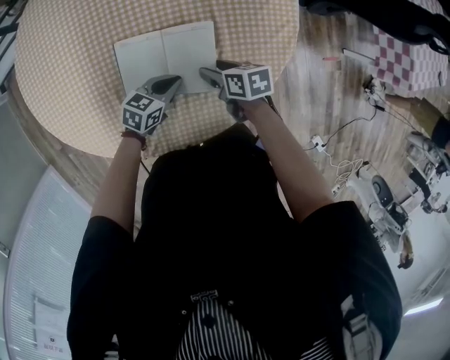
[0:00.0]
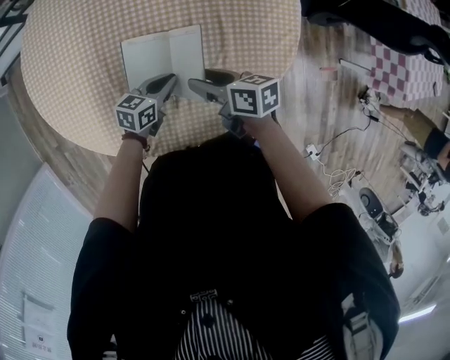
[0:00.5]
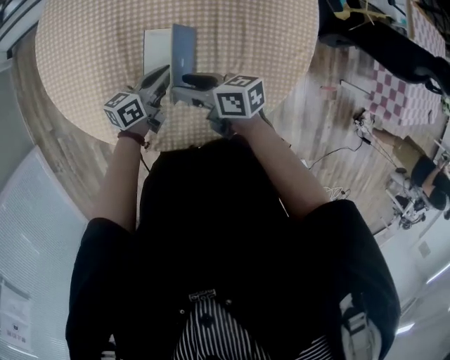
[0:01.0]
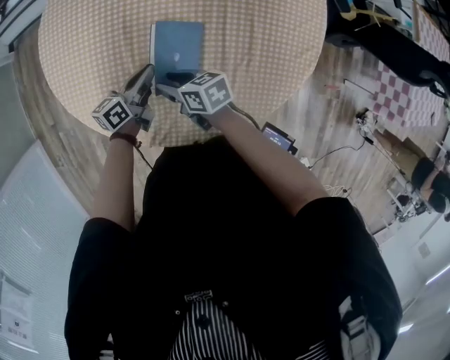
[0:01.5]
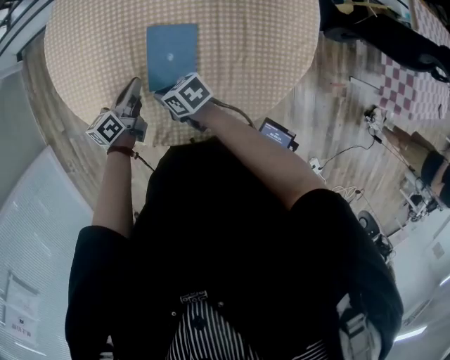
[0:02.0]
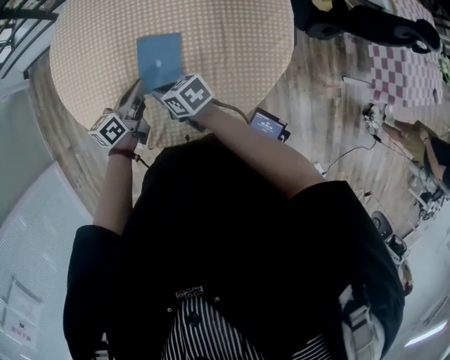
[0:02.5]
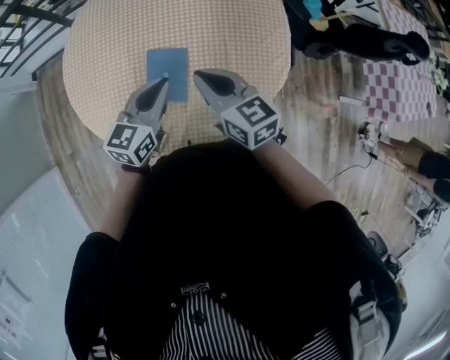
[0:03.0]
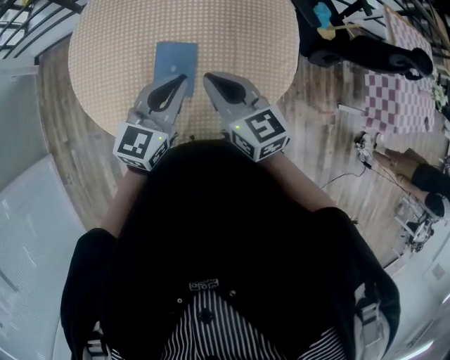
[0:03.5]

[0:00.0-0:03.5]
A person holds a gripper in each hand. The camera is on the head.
0:00.0 to 0:02.0: The right gripper moves about 25 cm, changes its angle by roughly 30 degrees, and closes its fingers; the left gripper moves approximately 20 cm, and rotates approximately 50 degrees.
0:02.0 to 0:03.5: Both grippers travel together upward and to the right, roughly 30 cm. The left gripper rolls clockwise, seen from behind, by roughly 50 degrees; the right gripper turns by about 50 degrees.

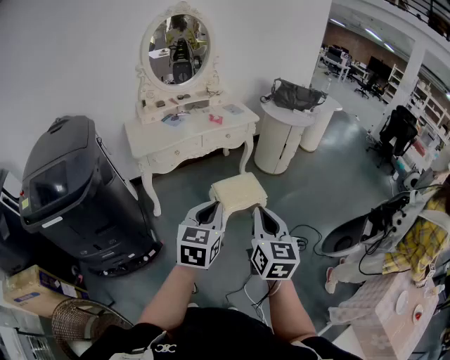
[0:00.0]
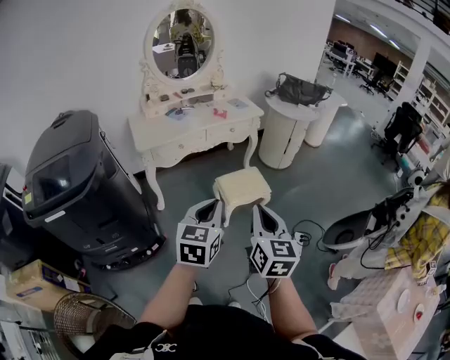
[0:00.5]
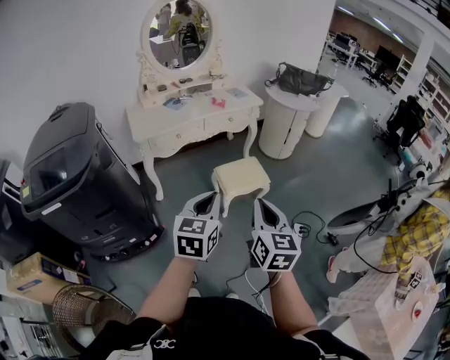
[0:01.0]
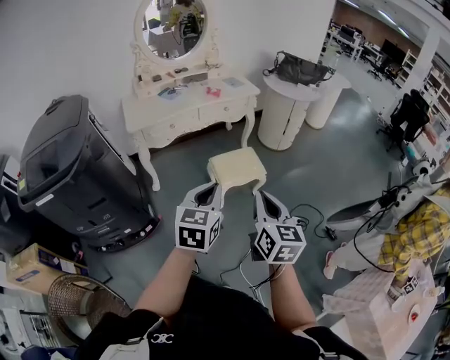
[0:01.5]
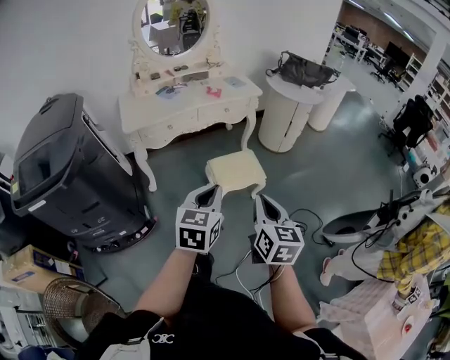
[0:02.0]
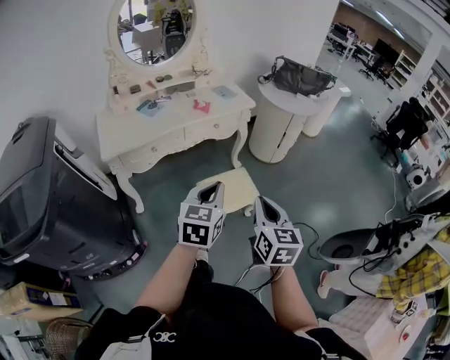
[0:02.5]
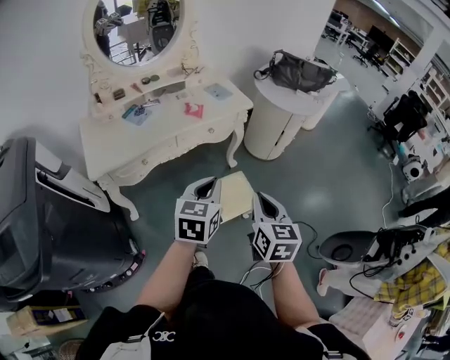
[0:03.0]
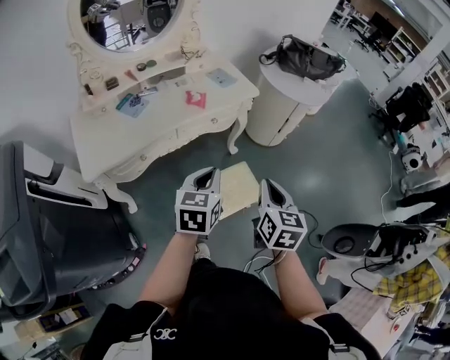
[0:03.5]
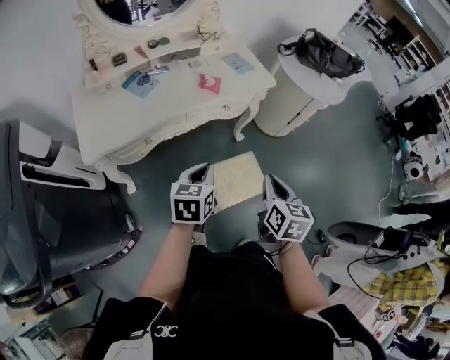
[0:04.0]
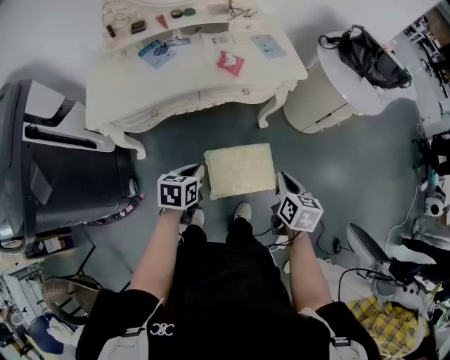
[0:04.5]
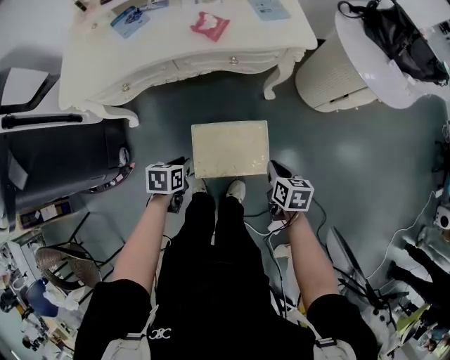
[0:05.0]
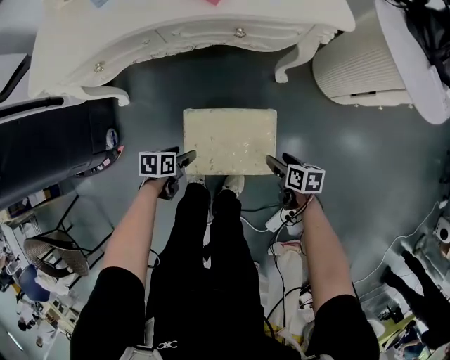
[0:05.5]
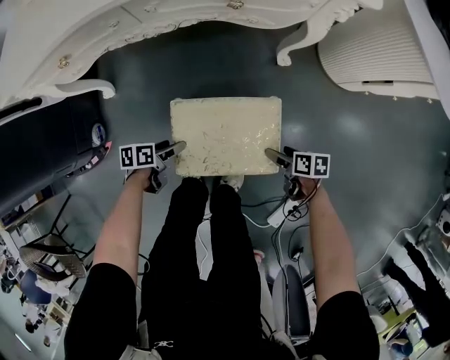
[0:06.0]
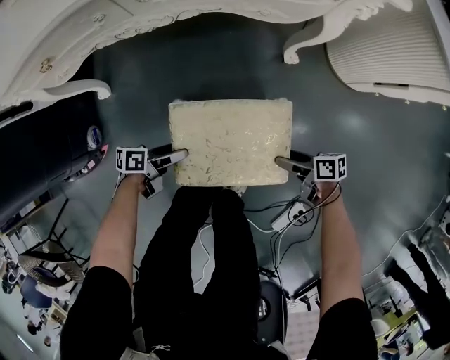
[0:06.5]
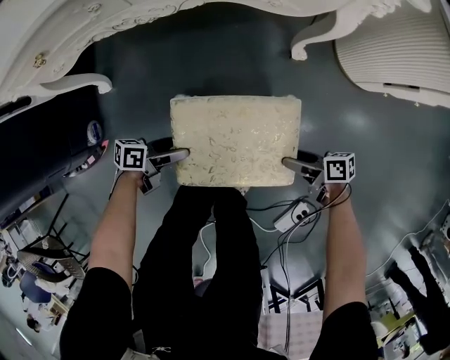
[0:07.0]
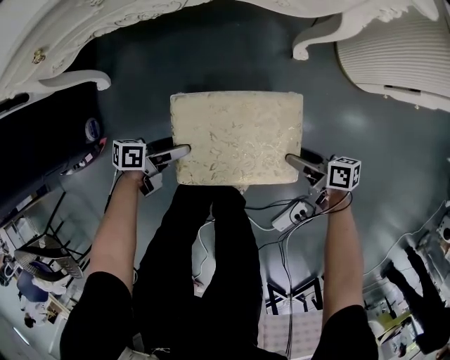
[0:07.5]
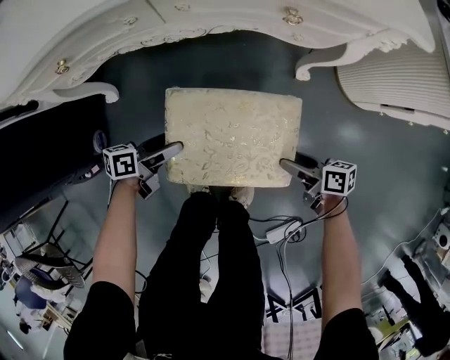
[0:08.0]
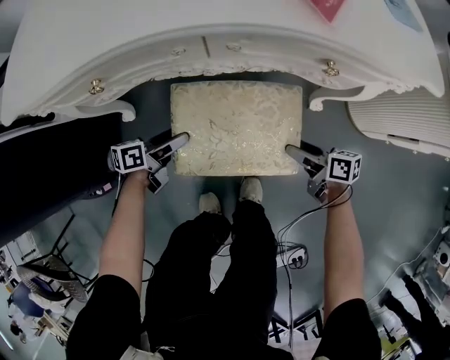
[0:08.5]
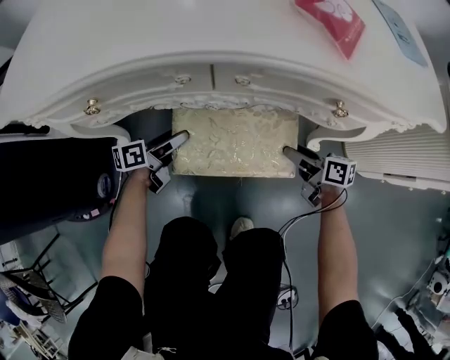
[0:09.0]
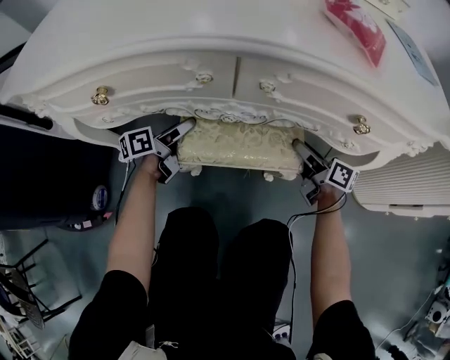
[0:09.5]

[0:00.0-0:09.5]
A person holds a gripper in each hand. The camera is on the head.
0:00.0 to 0:02.0: The right gripper goes some 10 cm to the right, downward and forward, while the left gripper shifts approximately 10 cm to the right, forward and downward.
0:02.0 to 0:04.0: The grippers both shift forward by approximately 40 cm.
0:04.0 to 0:05.5: The two grippers go roughly 40 cm downward. The left gripper rotates some 40 degrees, and opens its fingers. Meanwhile the right gripper rotates about 50 degrees, and opens.
0:05.5 to 0:07.5: Both grippers travel together downward, some 10 cm. The right gripper swivels approximately 30 degrees. Meanwhile the left gripper changes its angle by some 30 degrees.
0:07.5 to 0:09.5: The right gripper moves about 40 cm, and swivels about 30 degrees. Meanwhile the left gripper moves roughly 40 cm, and rotates roughly 40 degrees.

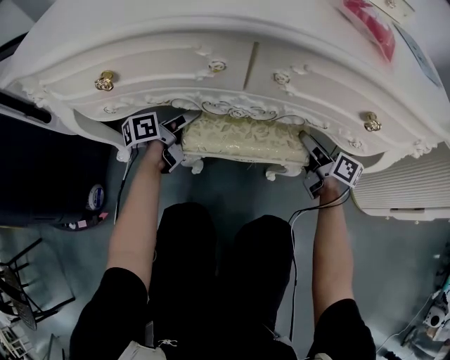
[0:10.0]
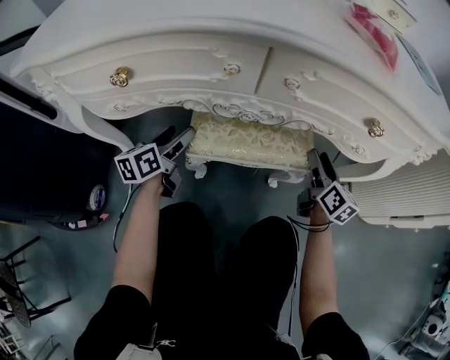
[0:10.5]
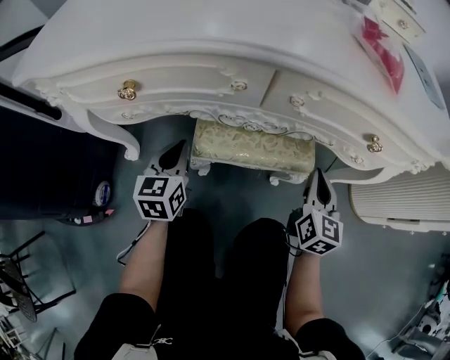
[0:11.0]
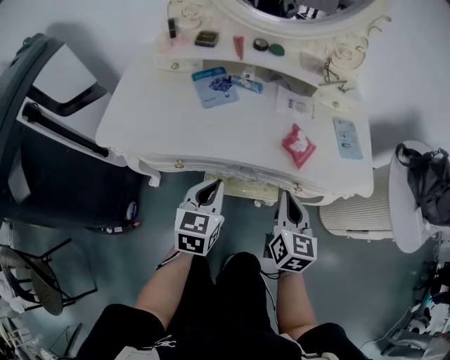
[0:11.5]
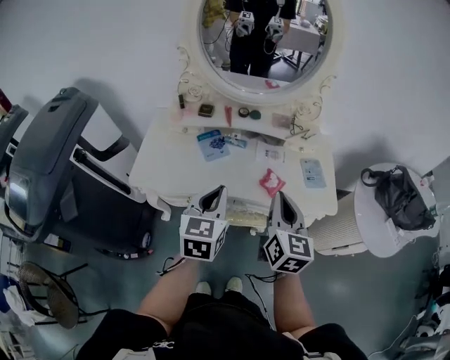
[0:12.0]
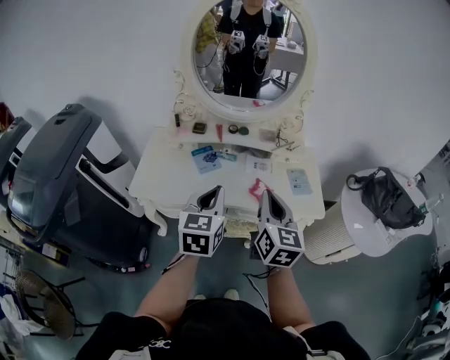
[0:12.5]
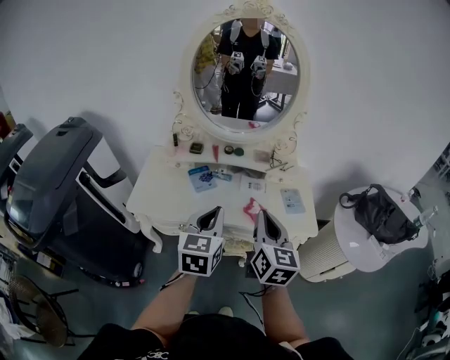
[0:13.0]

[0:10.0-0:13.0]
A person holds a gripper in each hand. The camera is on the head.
0:10.0 to 0:11.5: The left gripper travels upward and backward by some 40 cm, rolls clockwise, seen from behind, by roughly 40 degrees, and closes. Meanwhile the right gripper moves upward, some 40 cm, rotates about 50 degrees, and closes its fingers.
0:11.5 to 0:13.0: Both grippers travel together upward, roughly 30 cm.

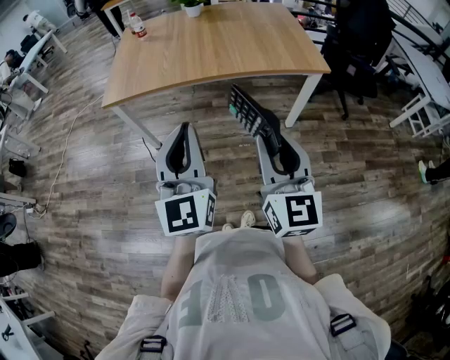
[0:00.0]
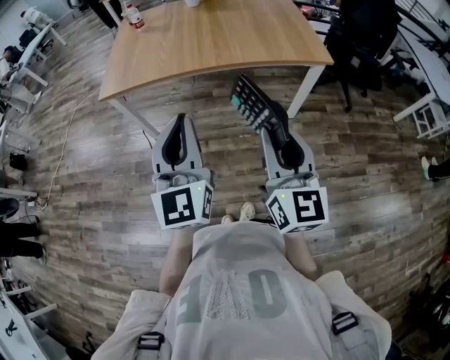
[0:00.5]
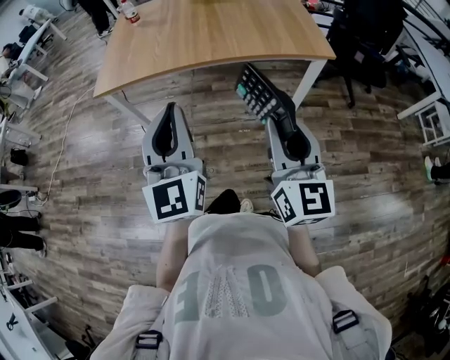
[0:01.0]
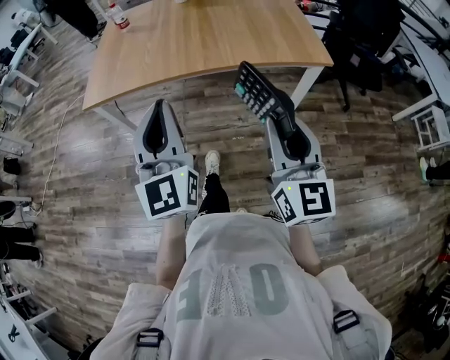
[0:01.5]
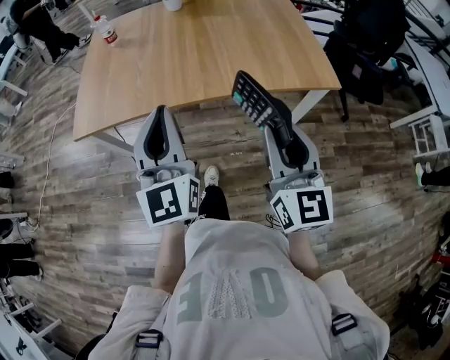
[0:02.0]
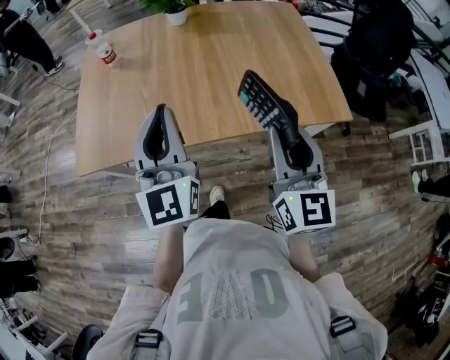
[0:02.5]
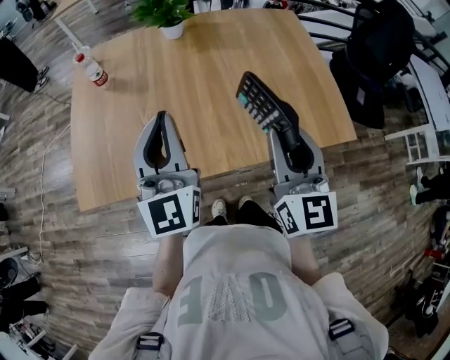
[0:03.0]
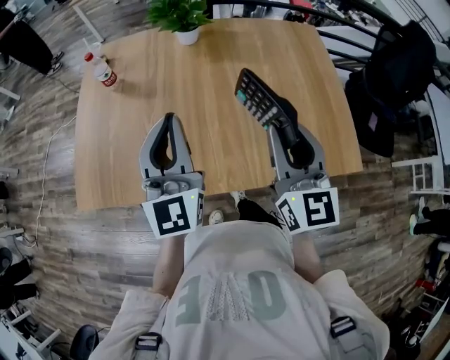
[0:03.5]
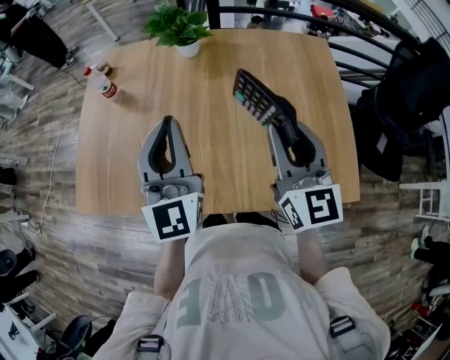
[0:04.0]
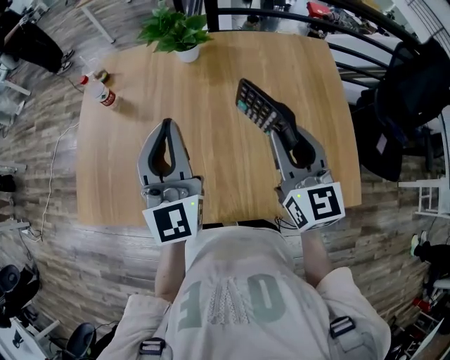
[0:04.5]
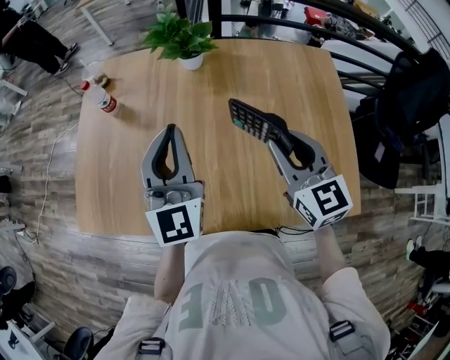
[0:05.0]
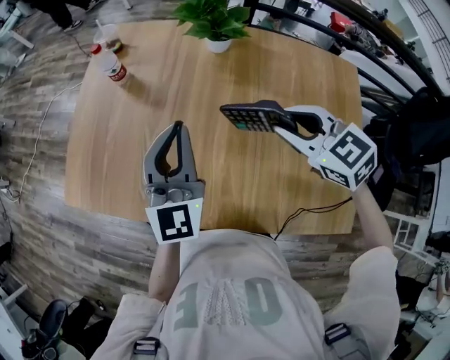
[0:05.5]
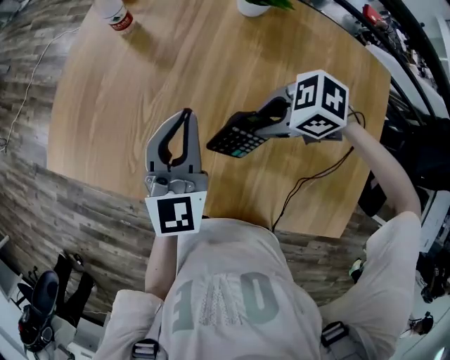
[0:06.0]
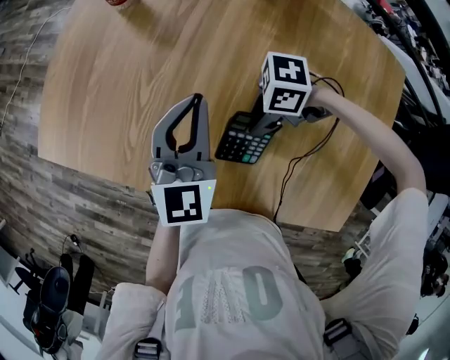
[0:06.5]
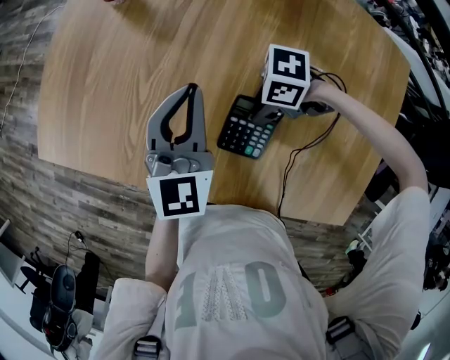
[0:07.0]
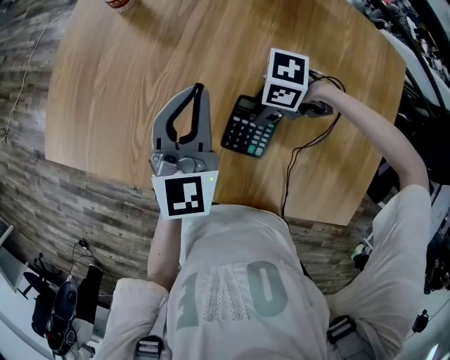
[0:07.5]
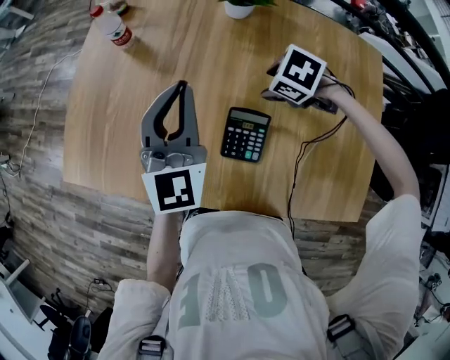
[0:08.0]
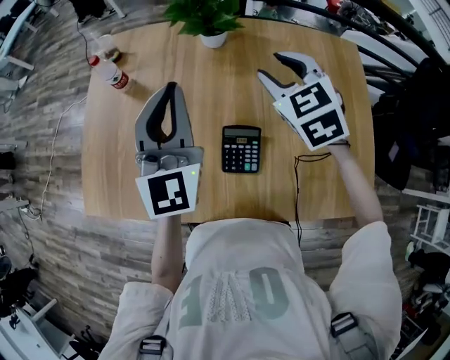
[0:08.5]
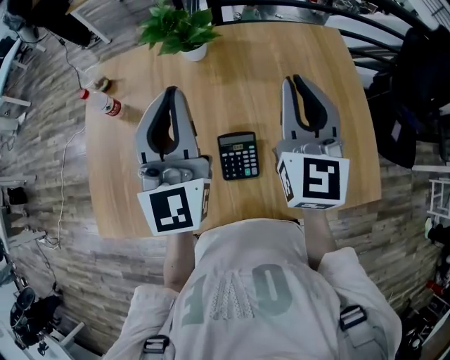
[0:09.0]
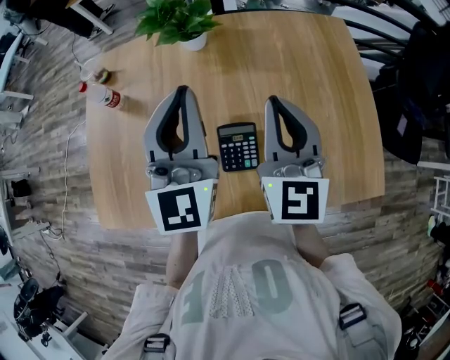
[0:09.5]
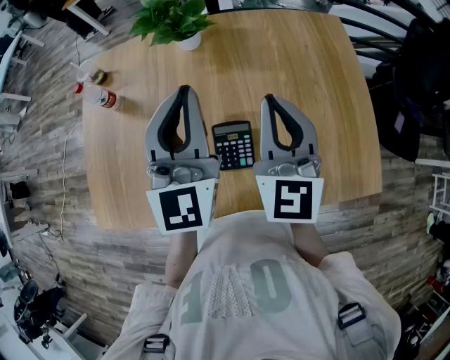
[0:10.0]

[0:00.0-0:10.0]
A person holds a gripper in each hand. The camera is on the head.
0:00.0 to 0:02.0: Both grippers move forward, roughly 25 cm.
0:02.0 to 0:04.0: Both grippers move forward, some 40 cm.
0:04.0 to 0:06.0: The grippers both shift downward by some 15 cm. The right gripper angles its fingers downward, by some 50 degrees; the left gripper turns by roughly 20 degrees.
0:06.0 to 0:08.0: The right gripper travels downward and back again, about 10 cm each way, rotates roughly 30 degrees, and opens up. The left gripper changes place by roughly 5 cm.
0:08.0 to 0:10.0: The left gripper travels upward by about 10 cm, while the right gripper moves upward, some 25 cm, tilts its fingers approximately 70 degrees upward, and closes its fingers.
